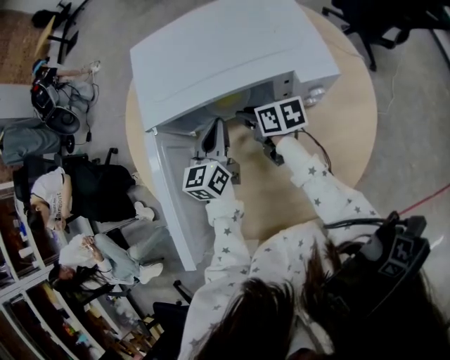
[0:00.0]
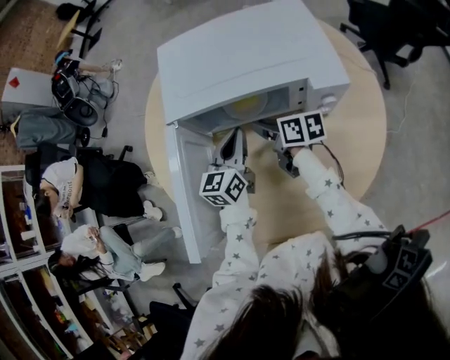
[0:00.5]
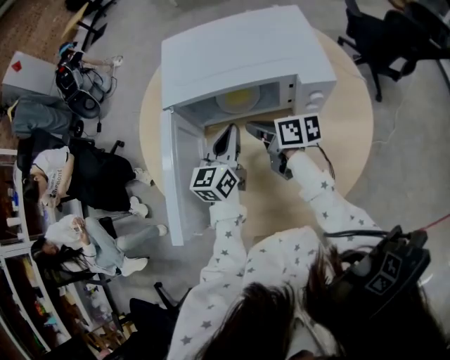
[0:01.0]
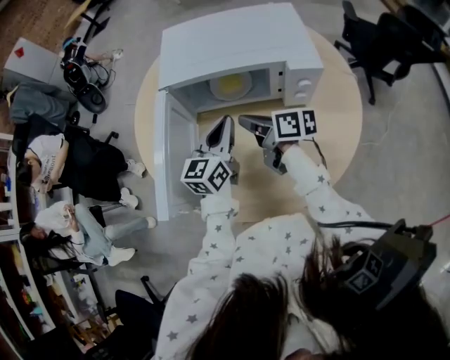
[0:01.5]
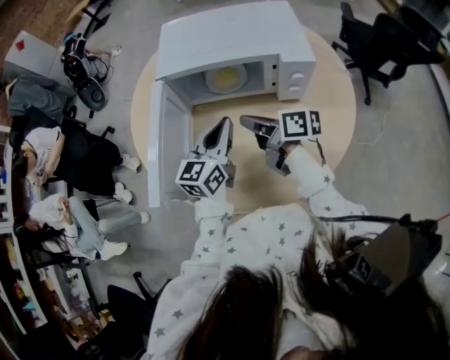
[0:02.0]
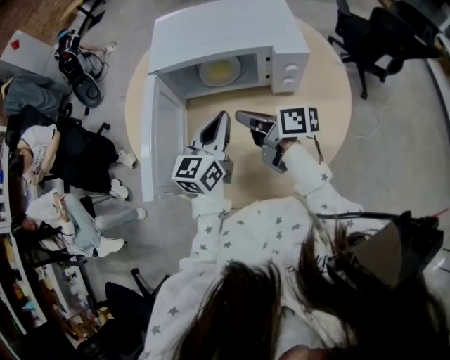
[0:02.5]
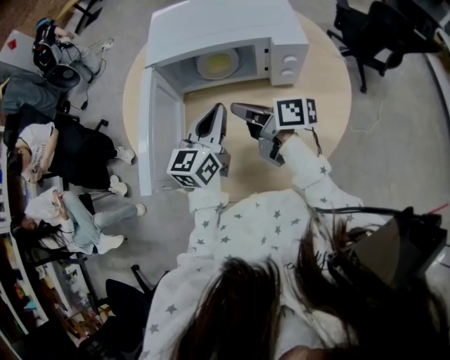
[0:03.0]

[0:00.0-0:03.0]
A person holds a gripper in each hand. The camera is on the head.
0:00.0 to 0:01.5: Both grippers move backward and upward, approximately 10 cm. The right gripper closes.
0:01.5 to 0:03.0: The grippers both shift backward by roughly 5 cm.

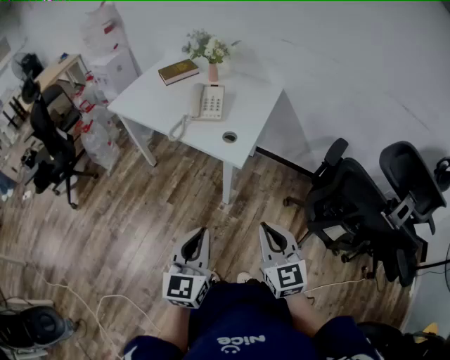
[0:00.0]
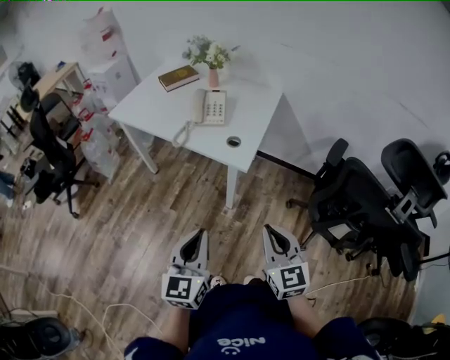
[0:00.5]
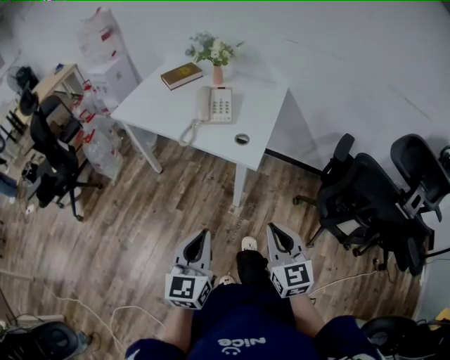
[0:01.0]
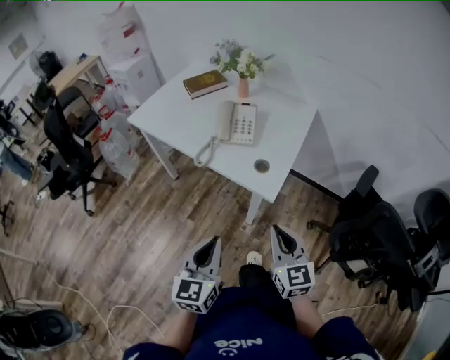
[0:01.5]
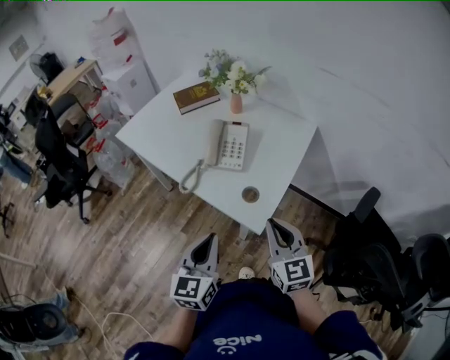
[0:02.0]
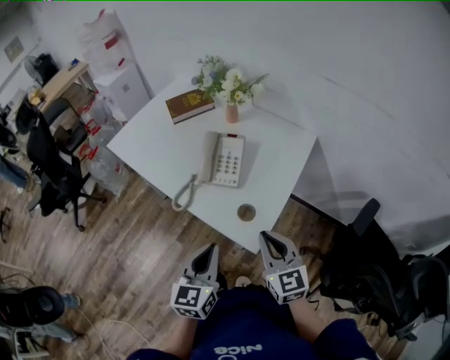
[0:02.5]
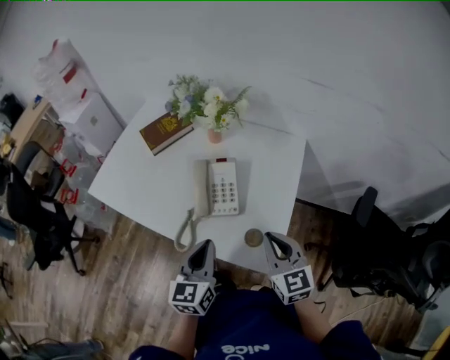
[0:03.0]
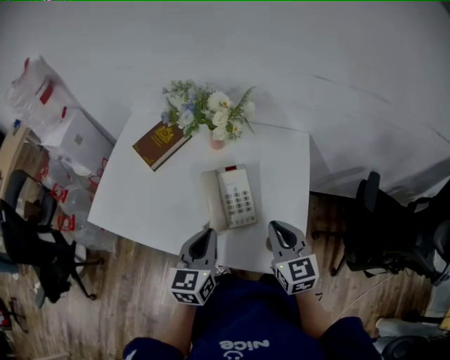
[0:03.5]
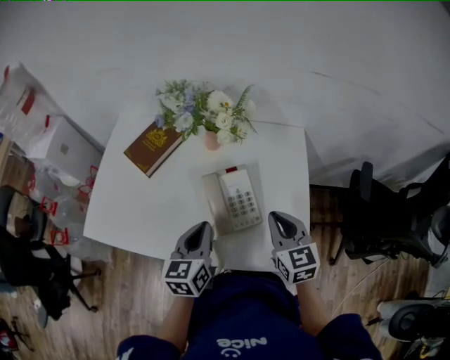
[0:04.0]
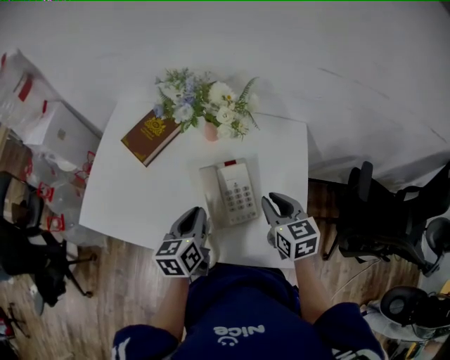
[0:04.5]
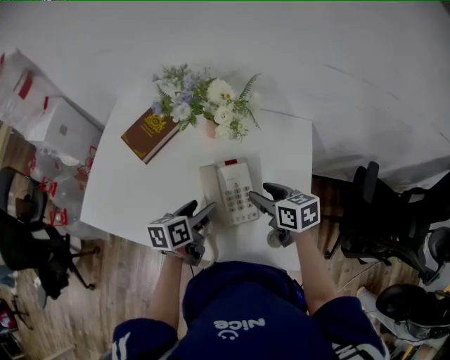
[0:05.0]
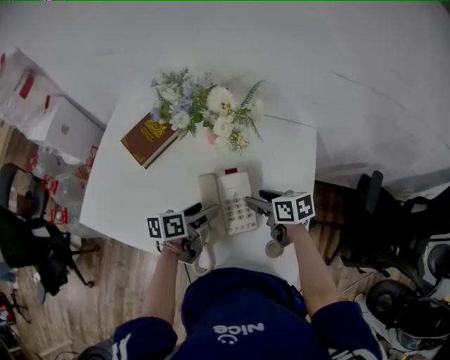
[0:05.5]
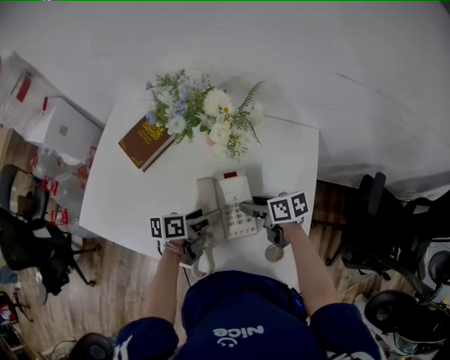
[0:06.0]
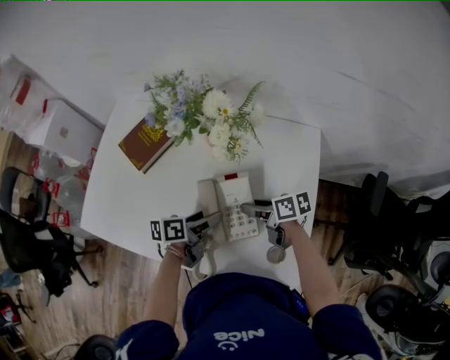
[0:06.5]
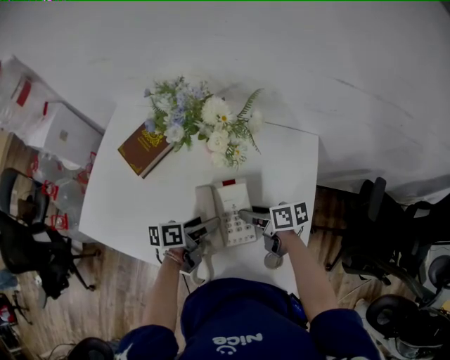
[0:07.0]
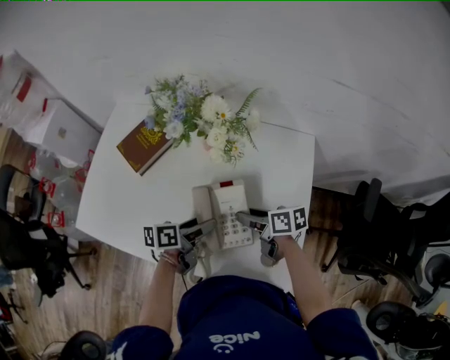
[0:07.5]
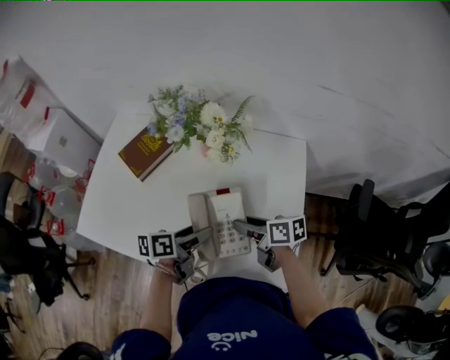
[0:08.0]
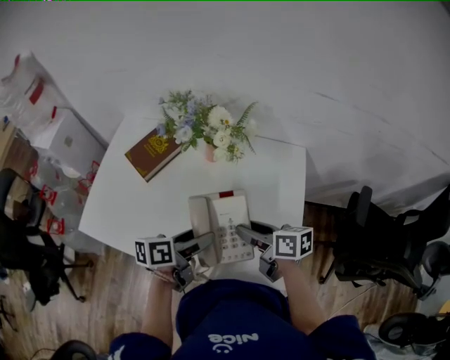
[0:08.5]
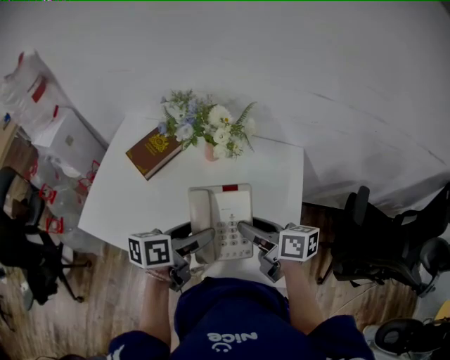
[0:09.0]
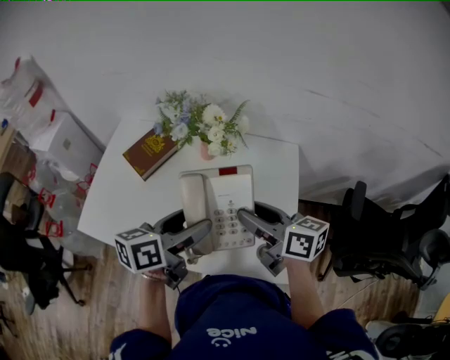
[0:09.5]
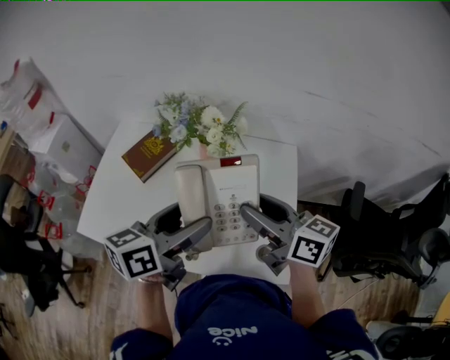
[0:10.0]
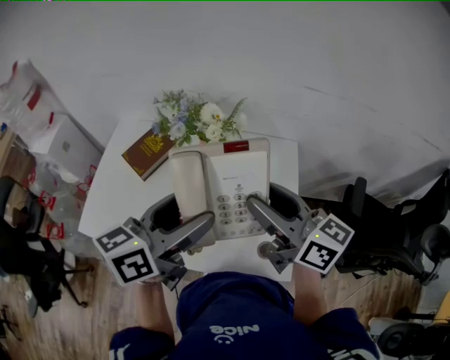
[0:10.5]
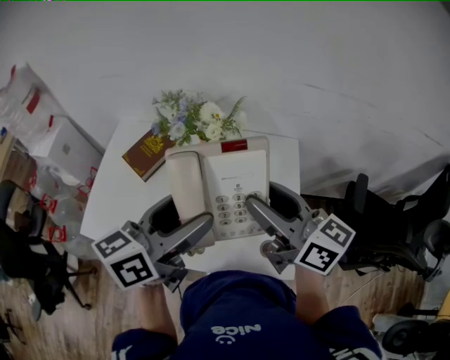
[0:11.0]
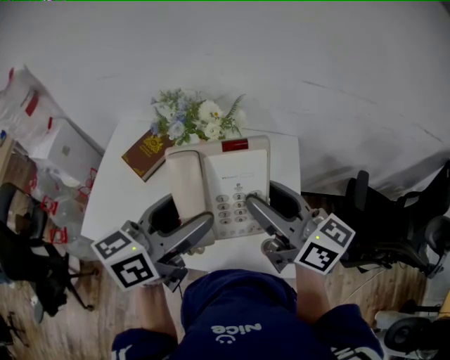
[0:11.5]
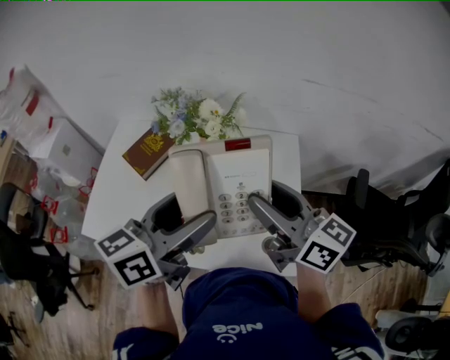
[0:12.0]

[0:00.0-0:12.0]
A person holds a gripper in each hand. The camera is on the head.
0:00.0 to 0:02.0: Both grippers travel together forward, about 25 cm.
0:02.0 to 0:04.0: The right gripper ends up about 25 cm from where it was, and turns by some 30 degrees, while the left gripper ends up approximately 35 cm from where it was, and rotates about 30 degrees.
0:04.0 to 0:06.0: Both grippers move downward and forward, roughly 15 cm. The right gripper changes its angle by roughly 60 degrees, and opens its fingers, while the left gripper changes its angle by about 50 degrees, and opens its fingers.
0:06.0 to 0:08.0: The two grippers go approximately 5 cm upward.
0:08.0 to 0:10.0: The grippers both shift upward by roughly 20 cm. The left gripper swivels approximately 30 degrees. The right gripper rotates roughly 40 degrees.
0:10.0 to 0:12.0: The right gripper moves upward, approximately 5 cm.

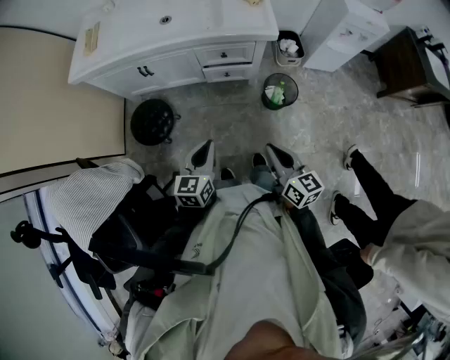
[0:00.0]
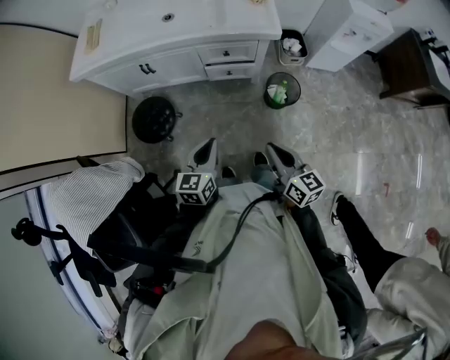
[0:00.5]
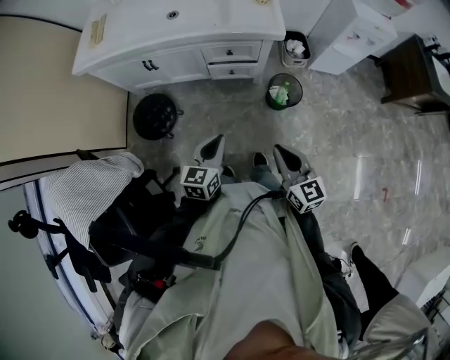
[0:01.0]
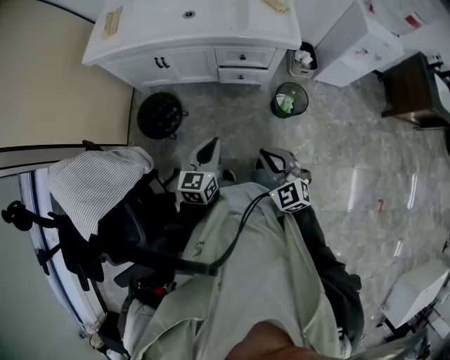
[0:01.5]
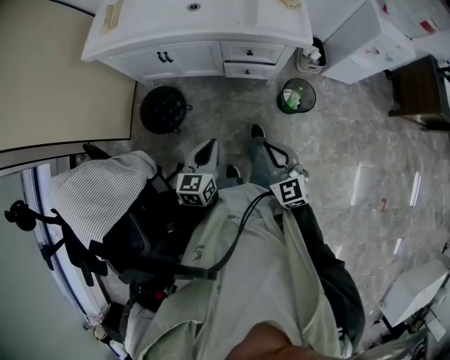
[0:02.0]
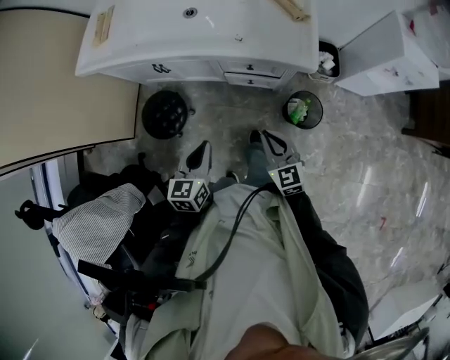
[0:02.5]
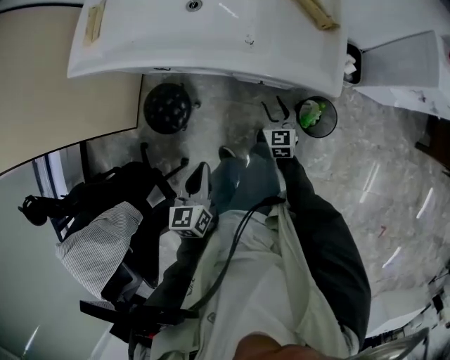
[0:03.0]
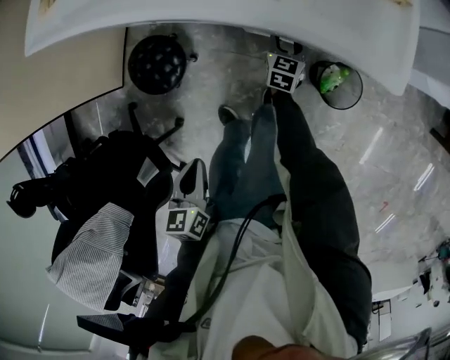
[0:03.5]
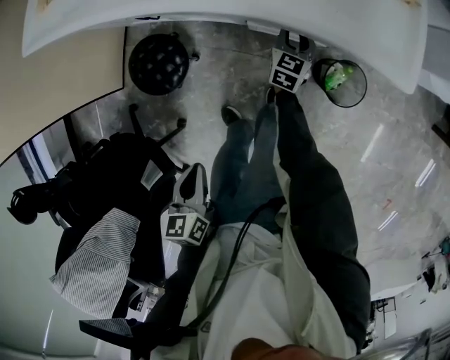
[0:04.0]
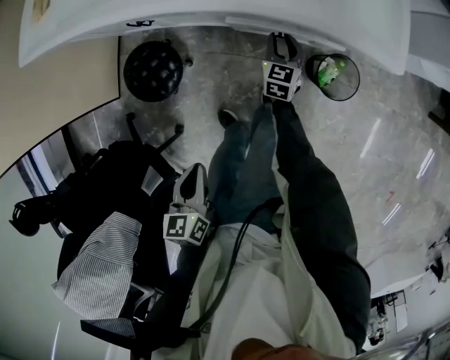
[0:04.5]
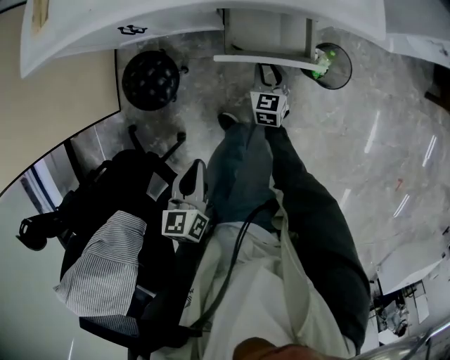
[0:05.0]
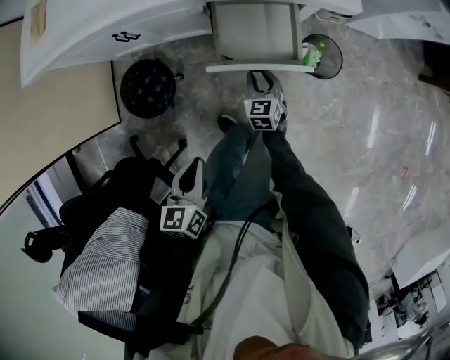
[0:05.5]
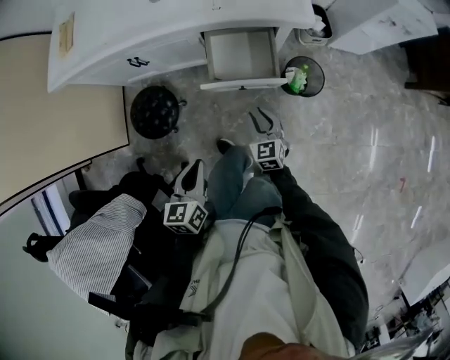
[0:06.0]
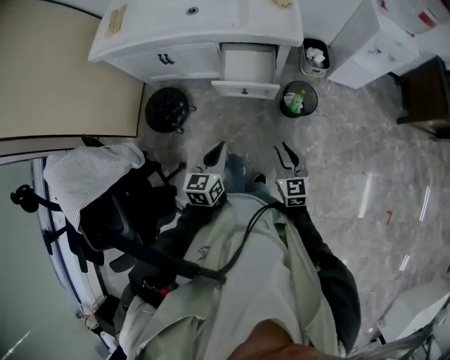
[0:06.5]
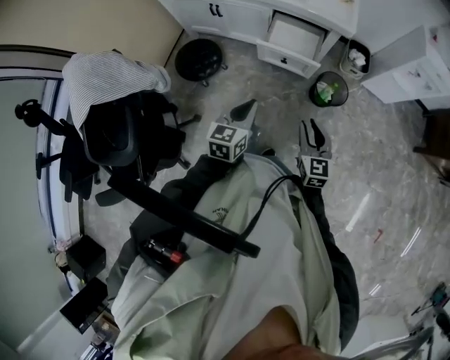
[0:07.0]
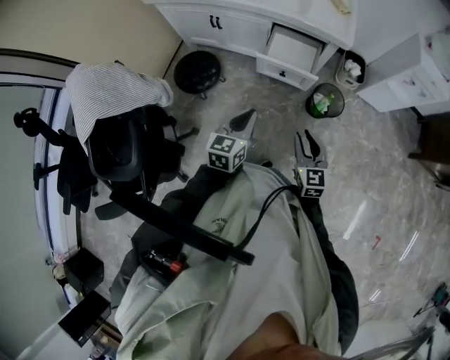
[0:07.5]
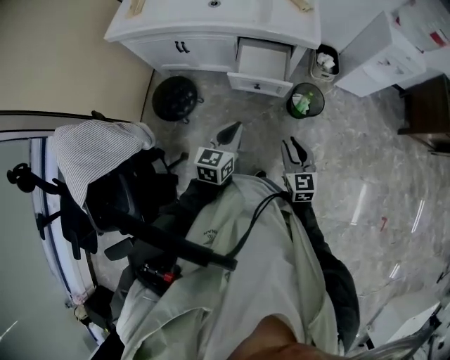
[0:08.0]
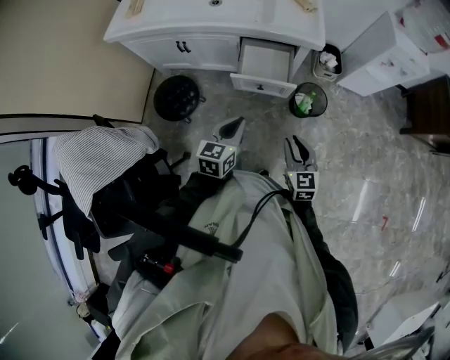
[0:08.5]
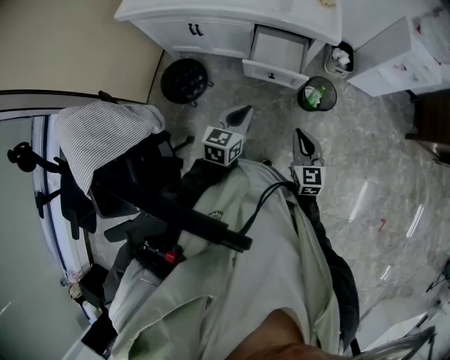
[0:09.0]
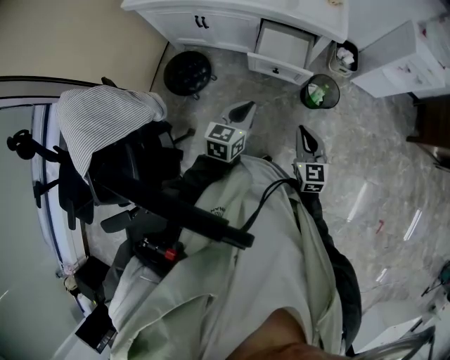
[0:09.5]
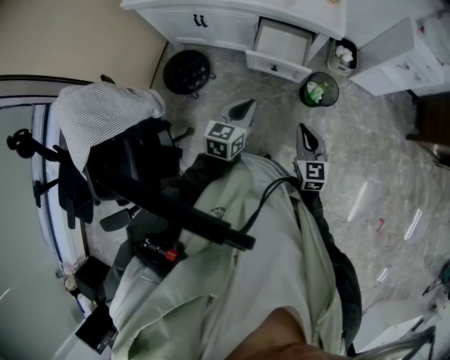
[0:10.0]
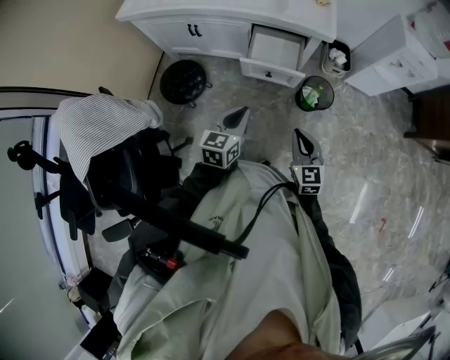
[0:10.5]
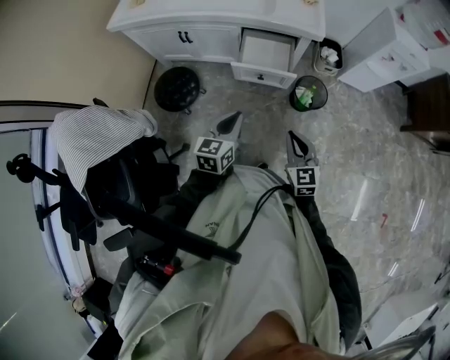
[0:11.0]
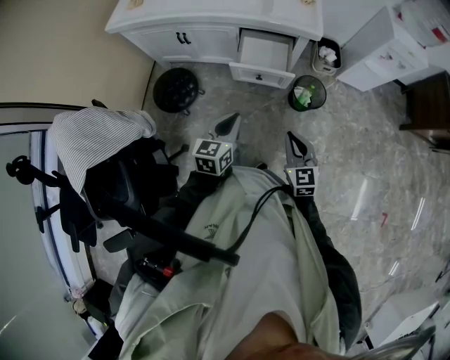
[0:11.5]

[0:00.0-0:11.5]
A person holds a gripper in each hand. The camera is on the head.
0:00.0 to 0:02.0: The left gripper heads to the left, covering approximately 5 cm. Meanwhile the right gripper goes about 10 cm to the left, and rotates around the line of its fingers by roughly 40 degrees, counterclockwise from behind.
0:02.0 to 0:04.0: The left gripper is displaced downward and forward by approximately 15 cm, and changes its angle by approximately 30 degrees; the right gripper shifts approximately 50 cm forward and downward, swivels roughly 40 degrees, and opens.
0:04.0 to 0:06.0: The right gripper goes about 30 cm backward; the left gripper moves roughly 5 cm, and swivels about 20 degrees.
0:06.0 to 0:07.5: The left gripper travels upward, to the right and backward by roughly 15 cm. Meanwhile the right gripper is displaced upward and backward by some 25 cm.
0:07.5 to 0:09.5: The right gripper closes.
0:09.5 to 0:11.5: There are only small adjustments of the grippers.
